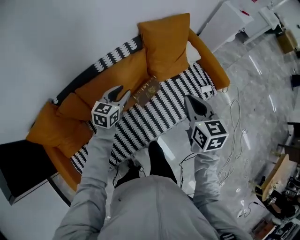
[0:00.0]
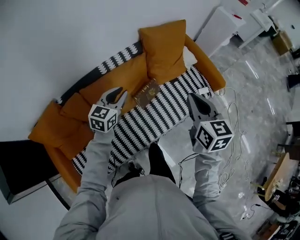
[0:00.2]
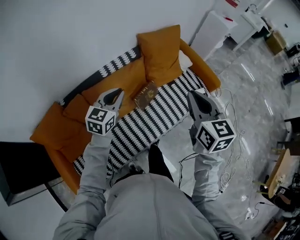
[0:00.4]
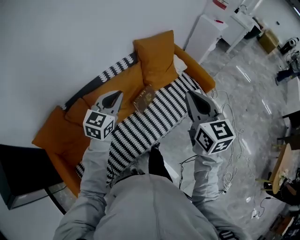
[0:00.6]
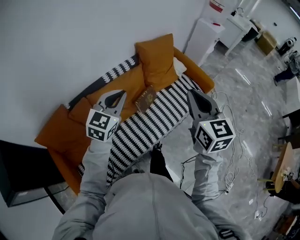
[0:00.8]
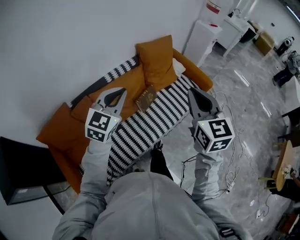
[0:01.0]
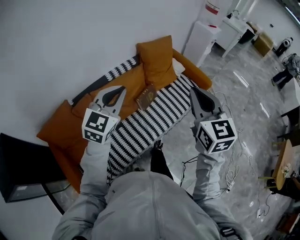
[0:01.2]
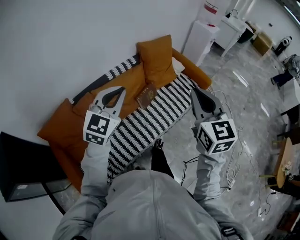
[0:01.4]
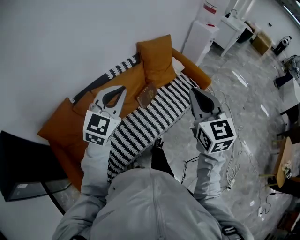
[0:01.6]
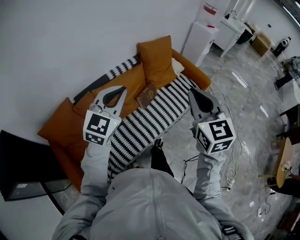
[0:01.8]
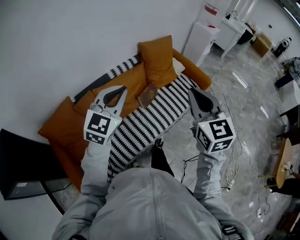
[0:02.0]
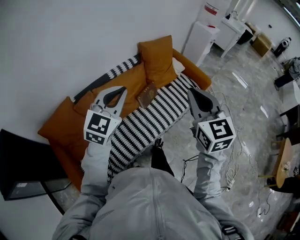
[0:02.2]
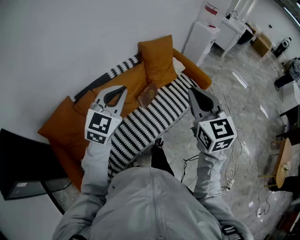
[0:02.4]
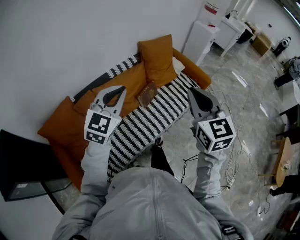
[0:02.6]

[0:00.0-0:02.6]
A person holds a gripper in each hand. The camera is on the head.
0.0 to 1.2 s: The left gripper goes approximately 40 cm upward and backward, changes its angle by approximately 30 degrees, and closes its fingers. The right gripper moves backward and upward, about 35 cm, and swivels approximately 30 degrees.
1.2 to 2.6 s: There are only small adjustments of the grippers.

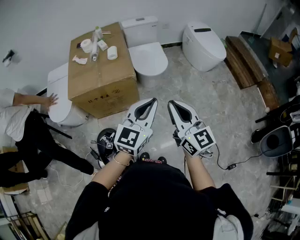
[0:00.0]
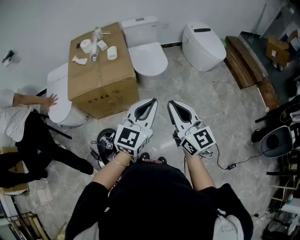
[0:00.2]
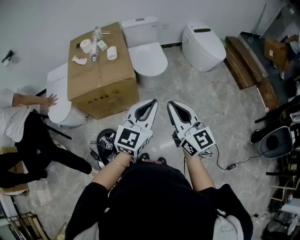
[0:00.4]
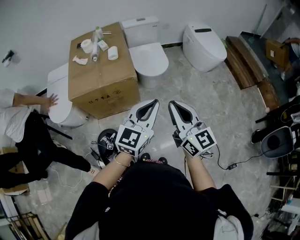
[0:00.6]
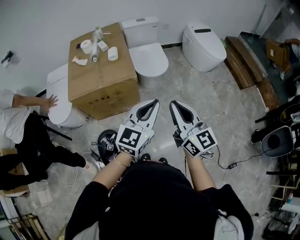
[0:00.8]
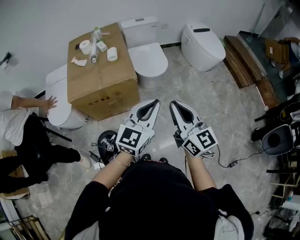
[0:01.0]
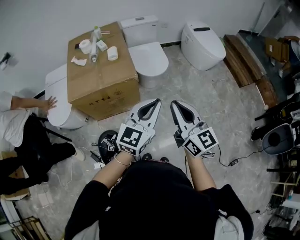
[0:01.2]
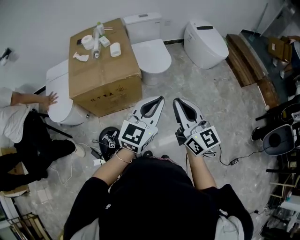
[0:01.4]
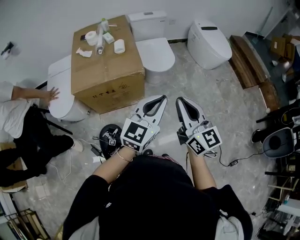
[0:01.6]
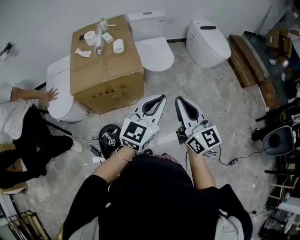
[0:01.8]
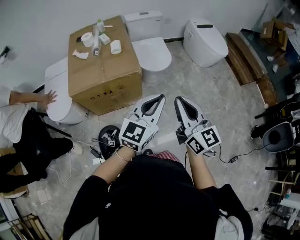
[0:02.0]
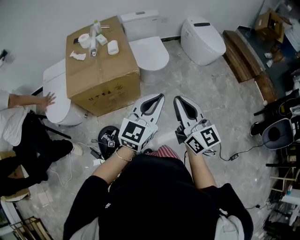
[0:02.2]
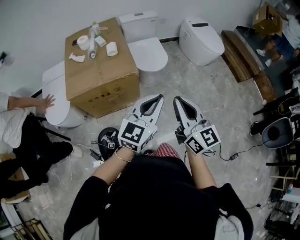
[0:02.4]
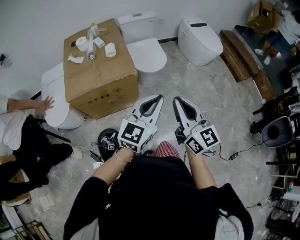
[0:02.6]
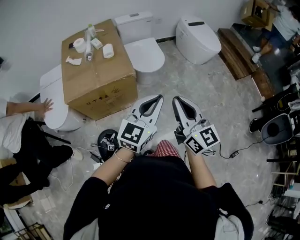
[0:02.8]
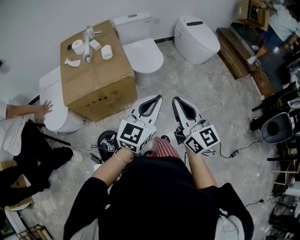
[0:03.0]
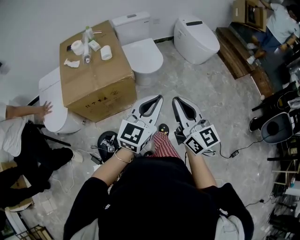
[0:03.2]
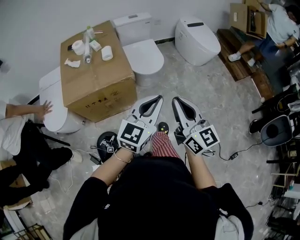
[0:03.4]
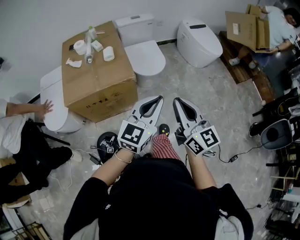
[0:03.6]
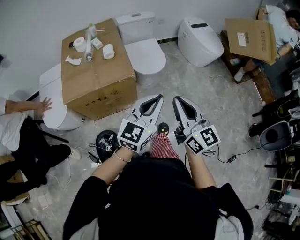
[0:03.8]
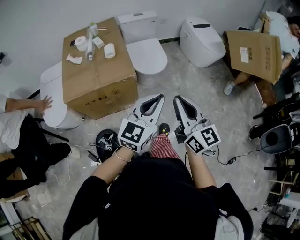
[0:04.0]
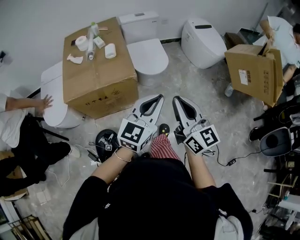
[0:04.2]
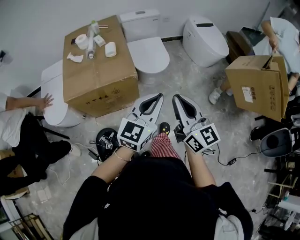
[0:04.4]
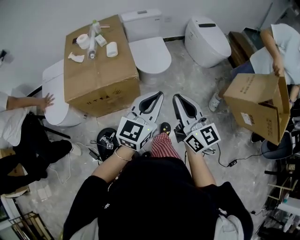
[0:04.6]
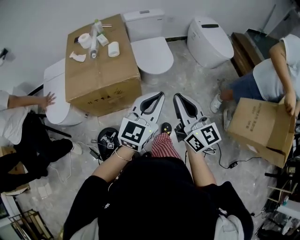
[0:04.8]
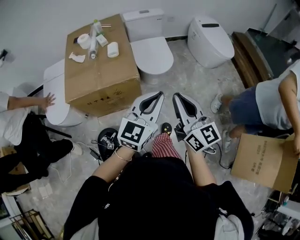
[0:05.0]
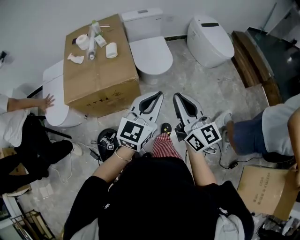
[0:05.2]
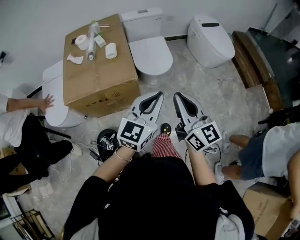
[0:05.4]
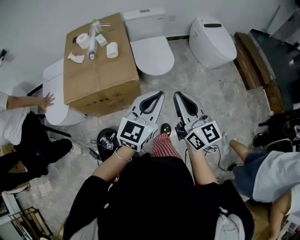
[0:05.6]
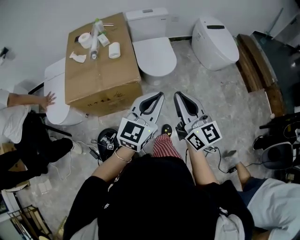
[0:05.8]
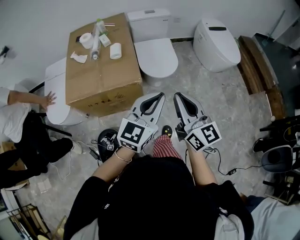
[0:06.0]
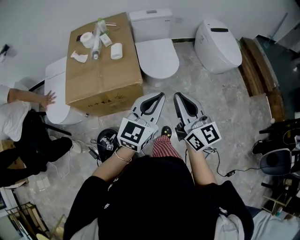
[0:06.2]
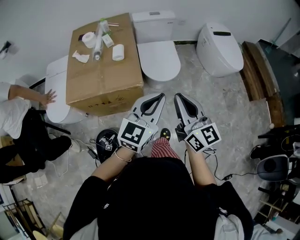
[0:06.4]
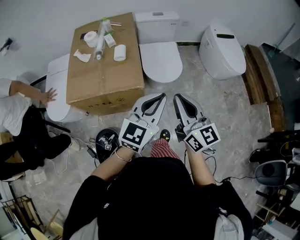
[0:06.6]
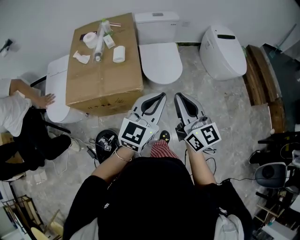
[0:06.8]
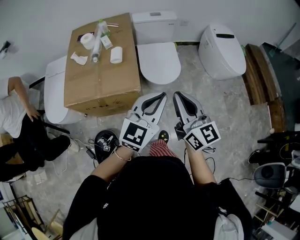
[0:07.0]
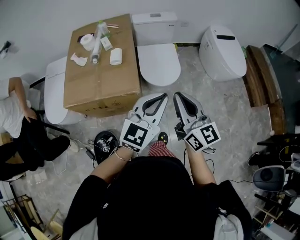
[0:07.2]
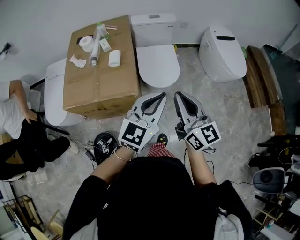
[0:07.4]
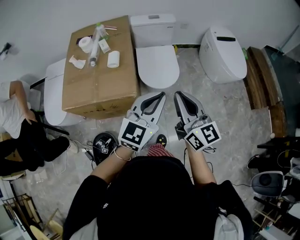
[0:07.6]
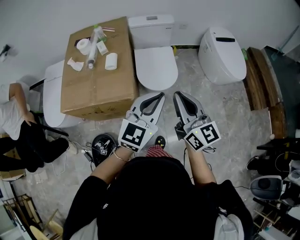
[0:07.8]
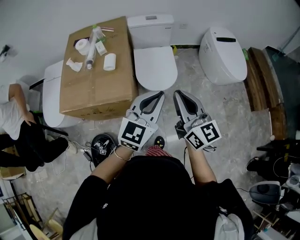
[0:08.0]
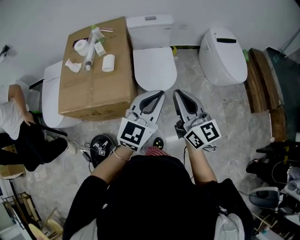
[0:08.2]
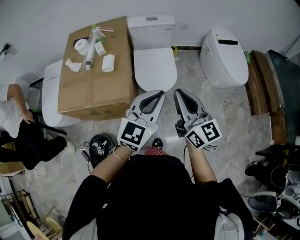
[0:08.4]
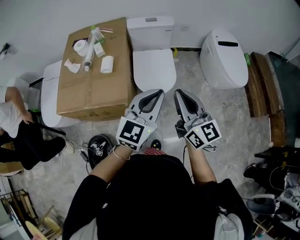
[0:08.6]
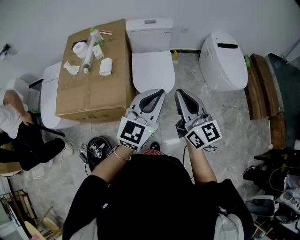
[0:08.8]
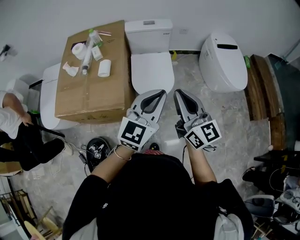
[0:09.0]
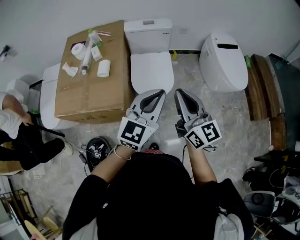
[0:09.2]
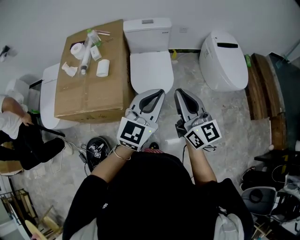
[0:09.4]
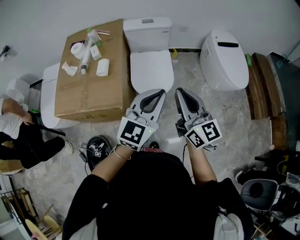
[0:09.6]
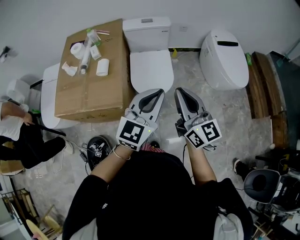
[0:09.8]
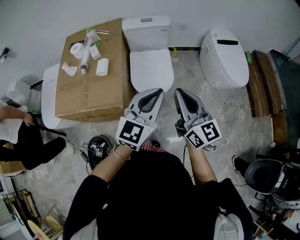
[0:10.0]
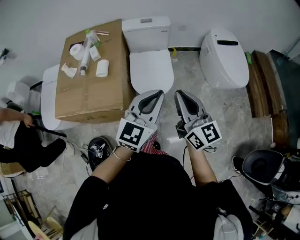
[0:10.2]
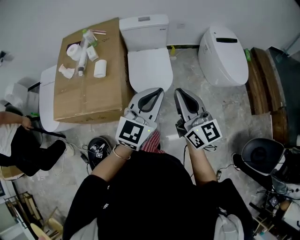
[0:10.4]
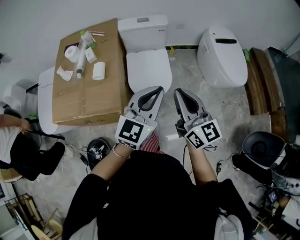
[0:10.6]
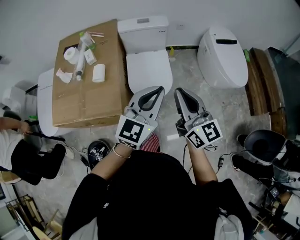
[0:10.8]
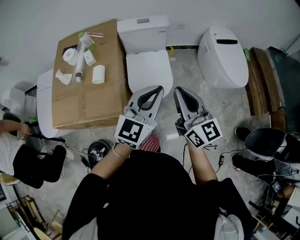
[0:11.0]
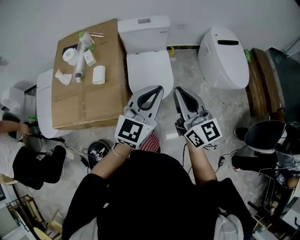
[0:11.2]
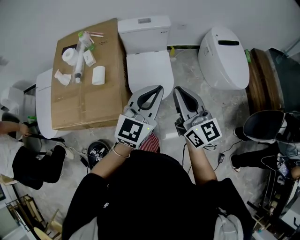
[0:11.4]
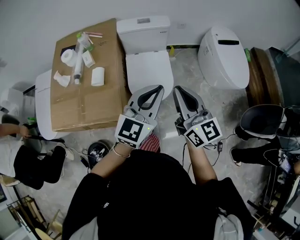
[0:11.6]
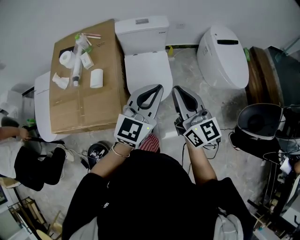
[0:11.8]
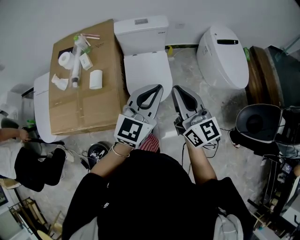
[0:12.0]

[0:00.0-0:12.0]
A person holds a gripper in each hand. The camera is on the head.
0.0 to 1.6 s: The grippers make only small movements.
1.6 to 3.0 s: Both grippers stay put.
3.0 to 4.4 s: Both grippers travel together forward, some 5 cm.
4.4 to 6.0 s: Both grippers move forward, approximately 10 cm.
6.0 to 7.6 s: Both grippers travel together forward, about 10 cm.
7.6 to 9.0 s: Both grippers travel together forward and to the right, approximately 10 cm.
9.0 to 10.4 s: There are only small adjustments of the grippers.
10.4 to 12.0 s: The grippers both shift forward by some 10 cm.

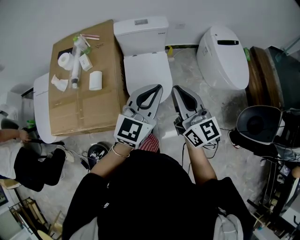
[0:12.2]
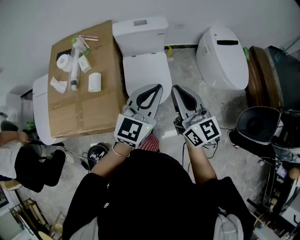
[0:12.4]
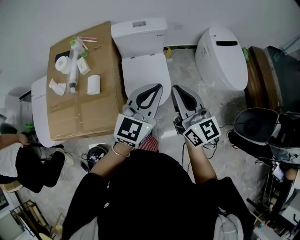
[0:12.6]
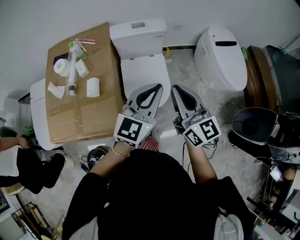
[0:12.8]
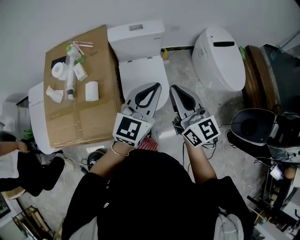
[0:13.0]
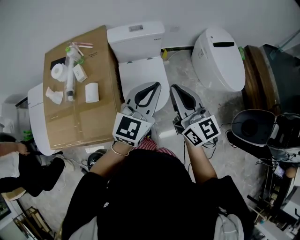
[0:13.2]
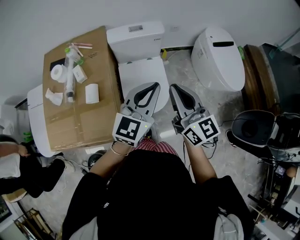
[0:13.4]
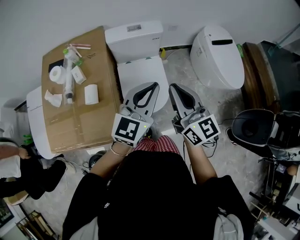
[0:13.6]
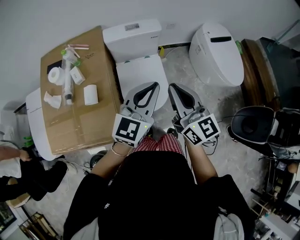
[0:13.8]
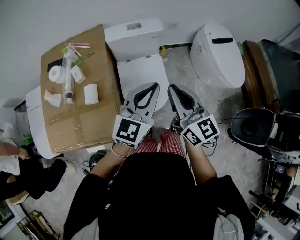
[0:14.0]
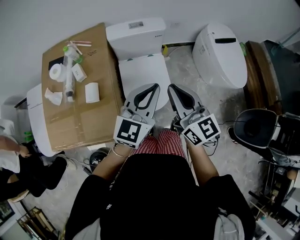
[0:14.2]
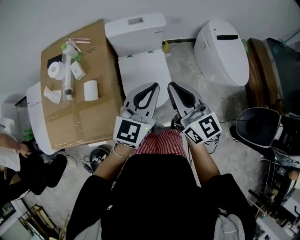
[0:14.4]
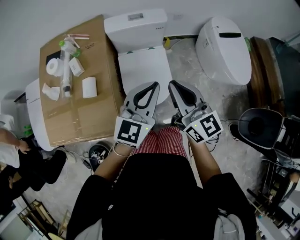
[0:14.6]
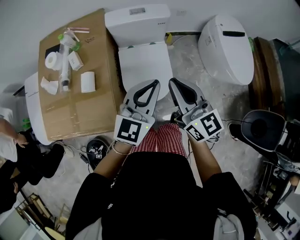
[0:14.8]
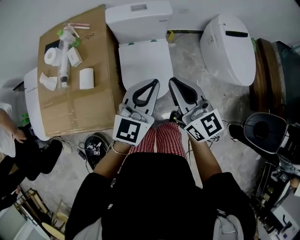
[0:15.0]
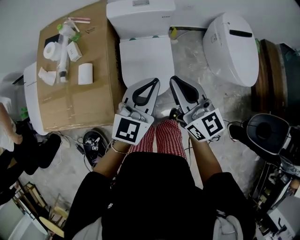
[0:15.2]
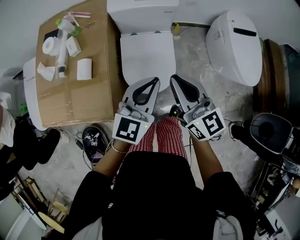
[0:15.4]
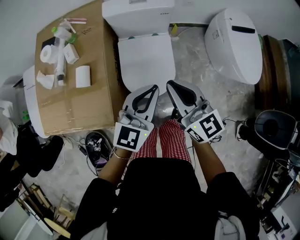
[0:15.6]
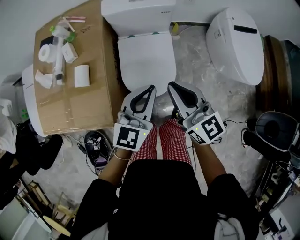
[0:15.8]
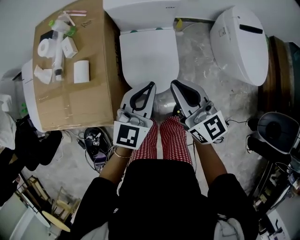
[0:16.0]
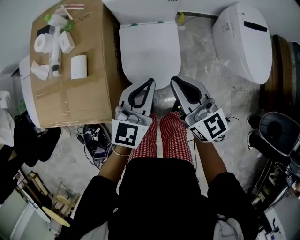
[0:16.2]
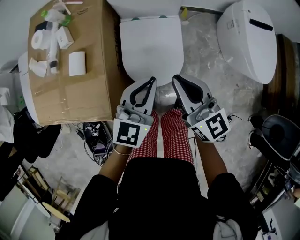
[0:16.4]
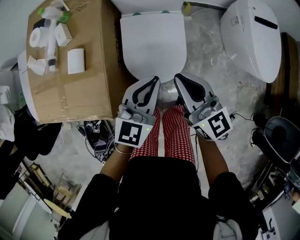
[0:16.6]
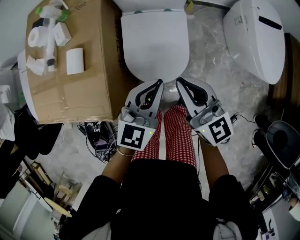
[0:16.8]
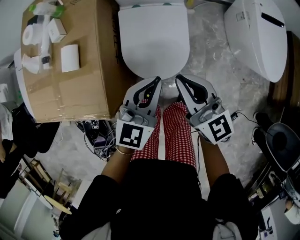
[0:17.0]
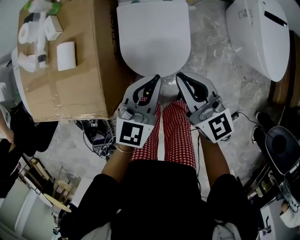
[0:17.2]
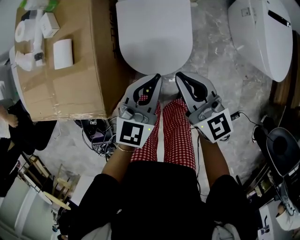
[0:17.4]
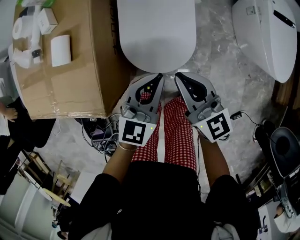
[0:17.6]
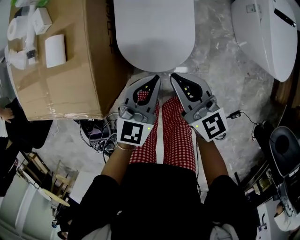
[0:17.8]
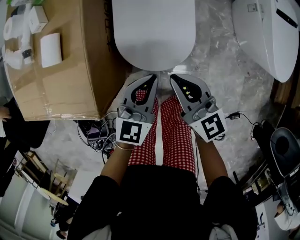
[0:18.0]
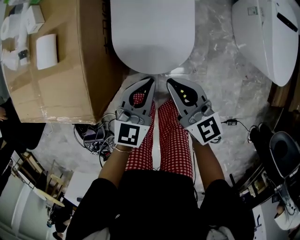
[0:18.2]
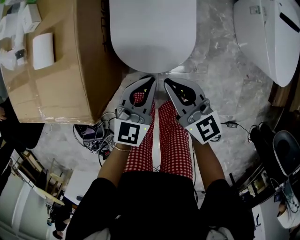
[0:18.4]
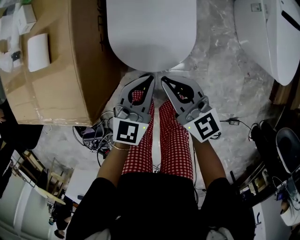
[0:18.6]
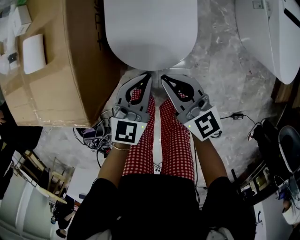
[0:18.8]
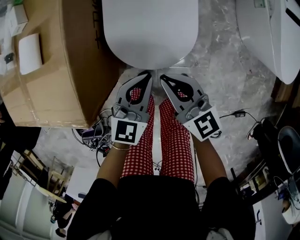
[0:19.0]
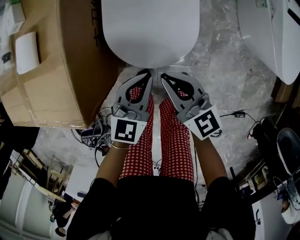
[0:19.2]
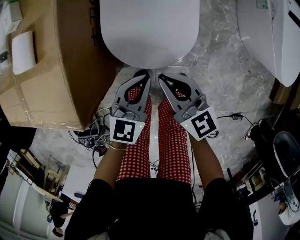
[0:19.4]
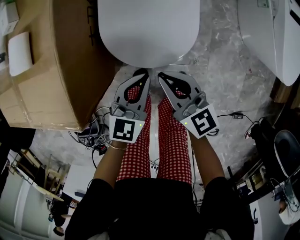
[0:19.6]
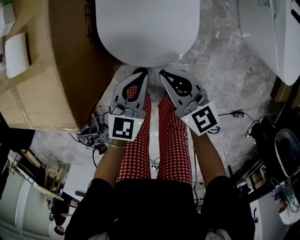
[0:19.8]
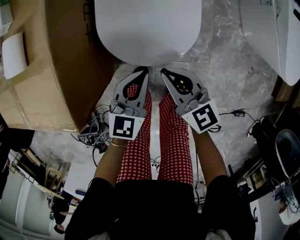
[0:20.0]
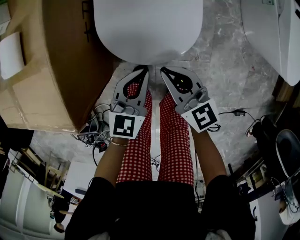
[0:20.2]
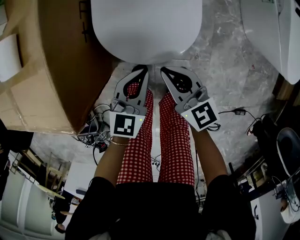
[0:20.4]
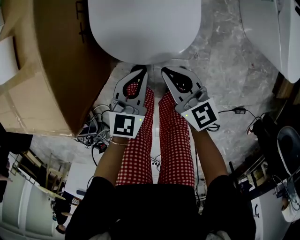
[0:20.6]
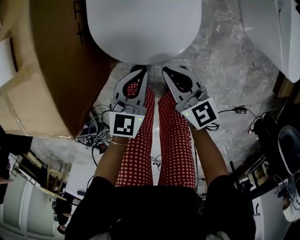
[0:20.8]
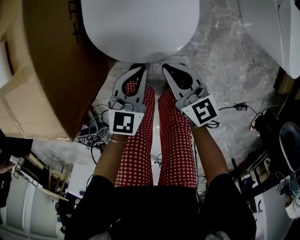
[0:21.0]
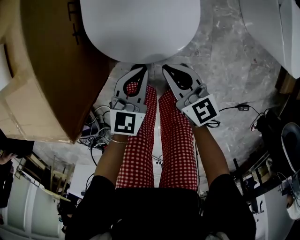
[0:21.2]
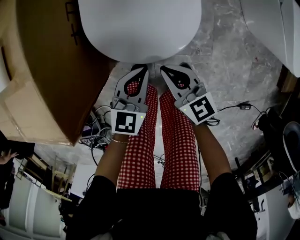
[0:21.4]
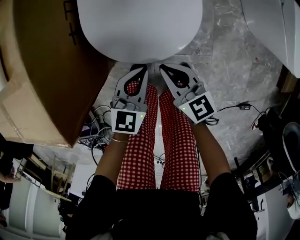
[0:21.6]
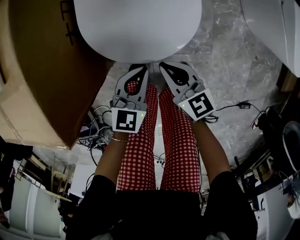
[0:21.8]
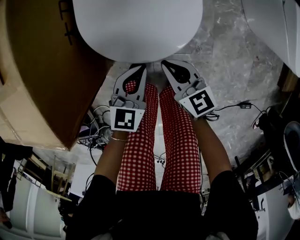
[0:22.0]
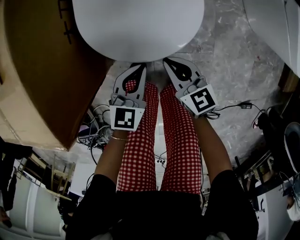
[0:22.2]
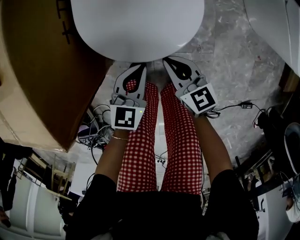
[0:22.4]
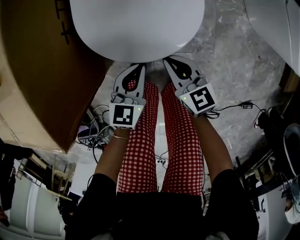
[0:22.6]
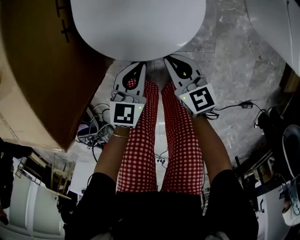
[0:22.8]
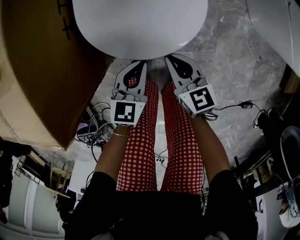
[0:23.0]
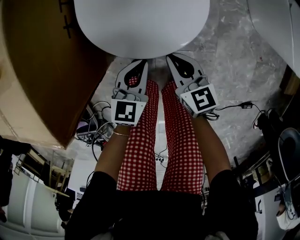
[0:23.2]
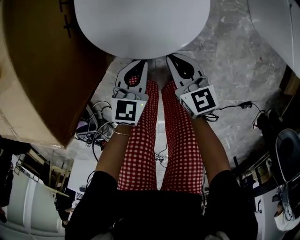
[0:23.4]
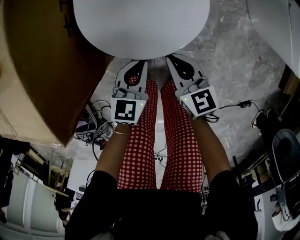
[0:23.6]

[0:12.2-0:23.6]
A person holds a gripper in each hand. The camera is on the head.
12.2 to 13.6 s: Both grippers travel together forward, about 5 cm.
13.6 to 15.0 s: The right gripper moves some 5 cm; the left gripper shifts roughly 5 cm downward.
15.0 to 16.4 s: The grippers both shift downward by some 10 cm.
16.4 to 17.8 s: Both grippers travel together downward, roughly 15 cm.
17.8 to 19.4 s: The two grippers go roughly 10 cm downward.
19.4 to 20.8 s: The grippers both shift downward by about 10 cm.
20.8 to 22.2 s: The two grippers go about 5 cm downward.
22.2 to 23.6 s: The grippers make only small movements.
